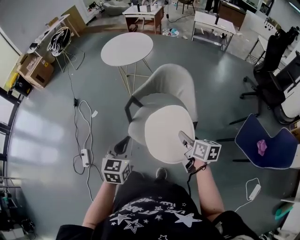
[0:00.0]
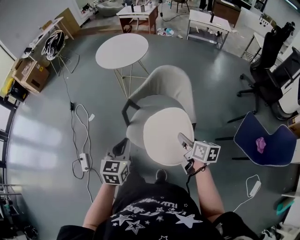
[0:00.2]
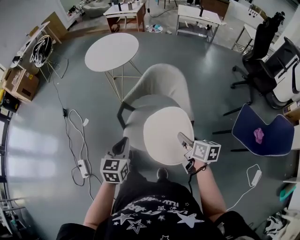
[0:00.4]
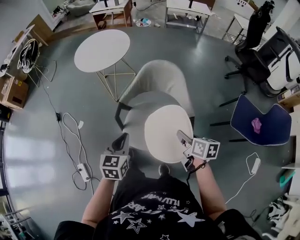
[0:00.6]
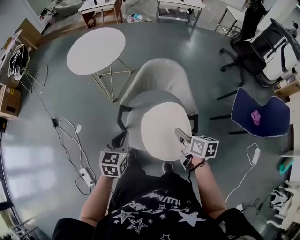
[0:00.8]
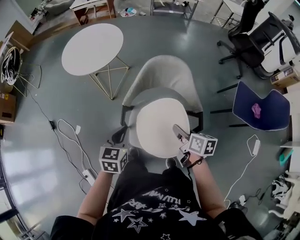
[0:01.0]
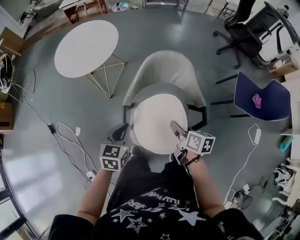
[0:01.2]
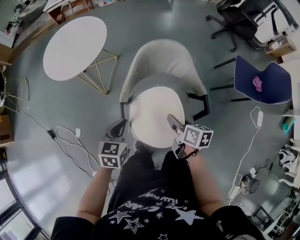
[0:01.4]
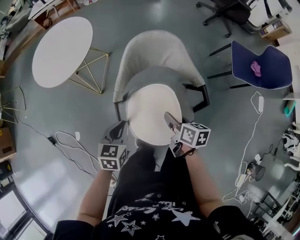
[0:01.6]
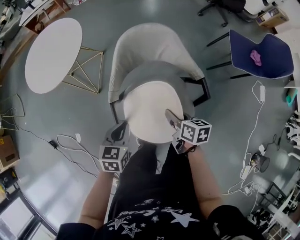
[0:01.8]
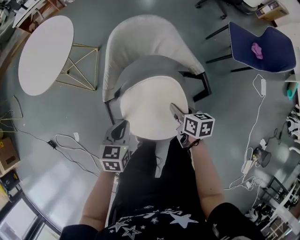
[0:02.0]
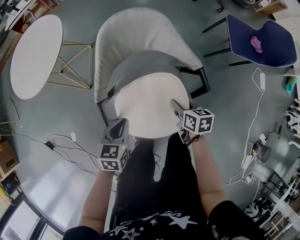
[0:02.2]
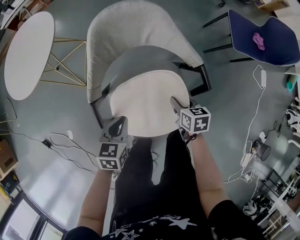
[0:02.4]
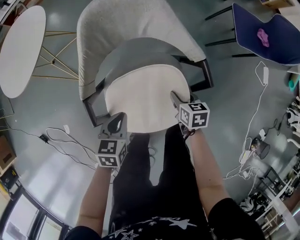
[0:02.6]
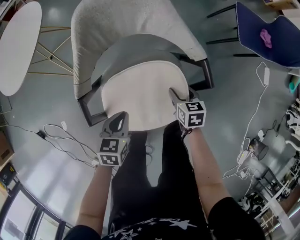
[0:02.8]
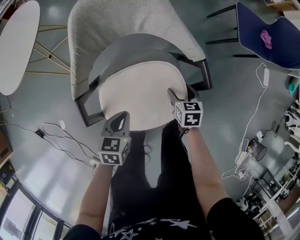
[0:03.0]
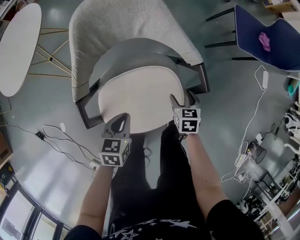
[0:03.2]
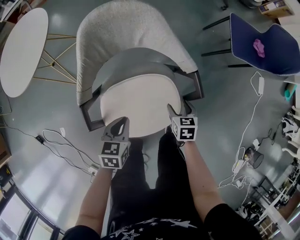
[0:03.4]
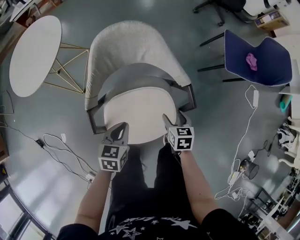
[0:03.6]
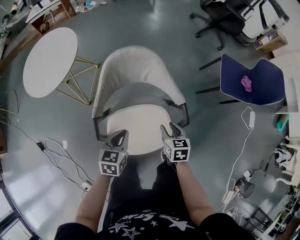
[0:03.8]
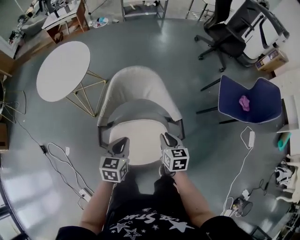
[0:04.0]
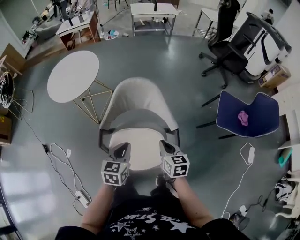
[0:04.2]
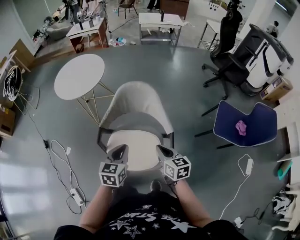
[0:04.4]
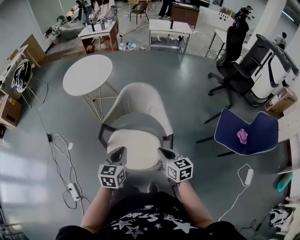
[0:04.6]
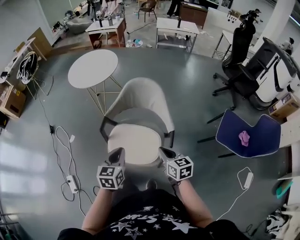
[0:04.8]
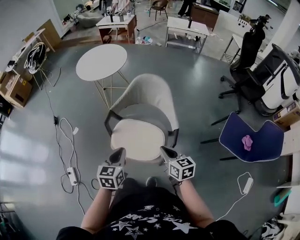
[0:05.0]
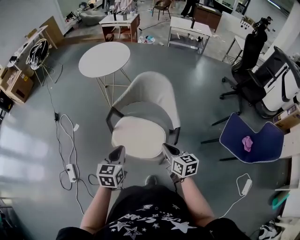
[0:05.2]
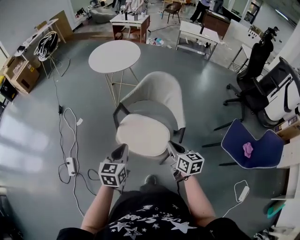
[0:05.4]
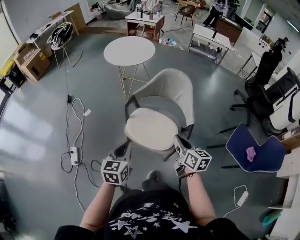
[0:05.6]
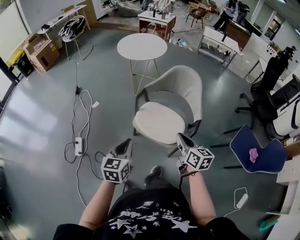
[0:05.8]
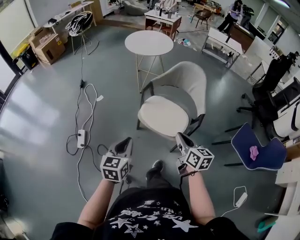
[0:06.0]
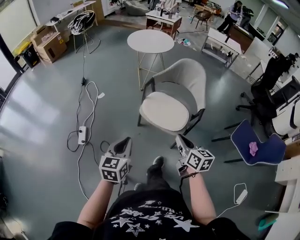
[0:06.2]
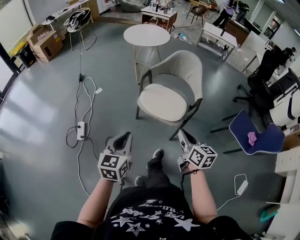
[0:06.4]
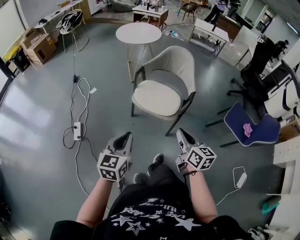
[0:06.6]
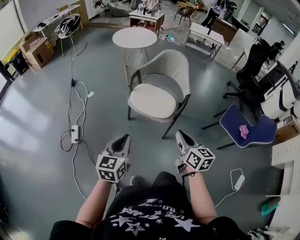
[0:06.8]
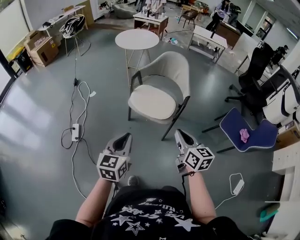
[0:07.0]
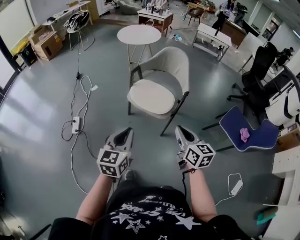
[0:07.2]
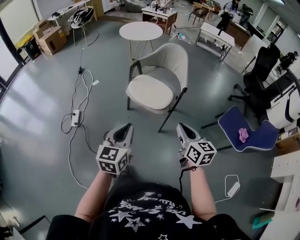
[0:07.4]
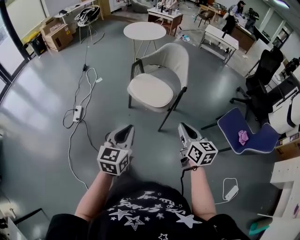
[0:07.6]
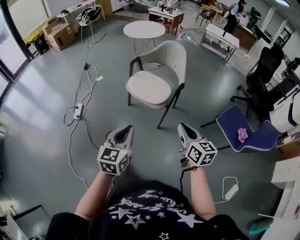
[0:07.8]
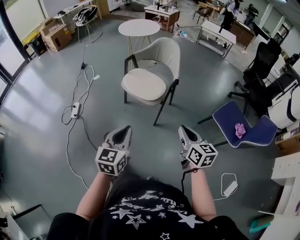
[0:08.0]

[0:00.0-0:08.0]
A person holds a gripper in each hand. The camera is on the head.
0:00.0 to 0:01.6: The right gripper ends up some 20 cm from where it was, and turns by roughly 40 degrees, while the left gripper shifts by some 30 cm, and changes its angle by approximately 40 degrees.
0:01.6 to 0:03.2: Both grippers move downward and to the right, some 25 cm. The right gripper swivels some 40 degrees, and opens.
0:03.2 to 0:04.8: Both grippers travel together upward, roughly 25 cm. The right gripper rotates some 50 degrees, and closes up. The left gripper rotates about 40 degrees.
0:04.8 to 0:06.4: Both grippers travel together backward and to the left, about 30 cm.
0:06.4 to 0:08.0: The two grippers go some 30 cm to the right and backward.

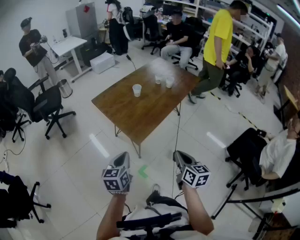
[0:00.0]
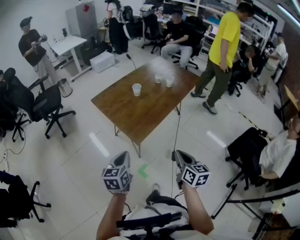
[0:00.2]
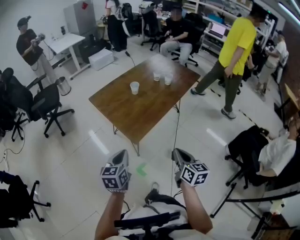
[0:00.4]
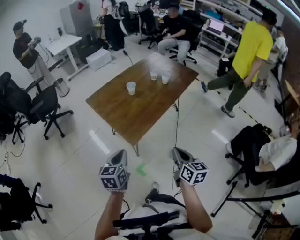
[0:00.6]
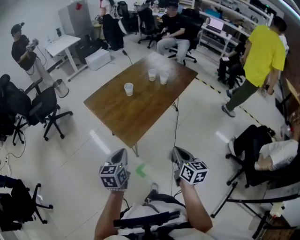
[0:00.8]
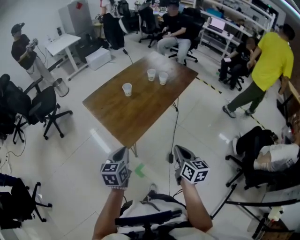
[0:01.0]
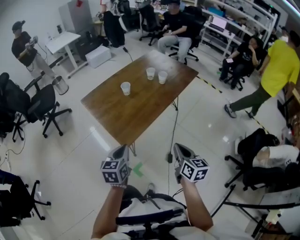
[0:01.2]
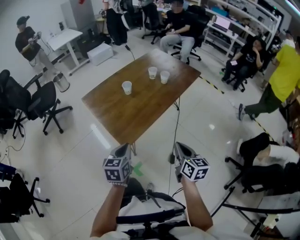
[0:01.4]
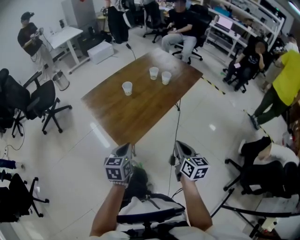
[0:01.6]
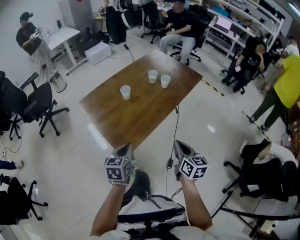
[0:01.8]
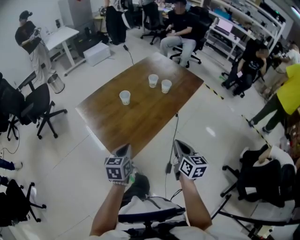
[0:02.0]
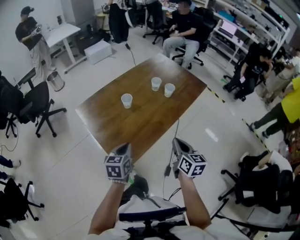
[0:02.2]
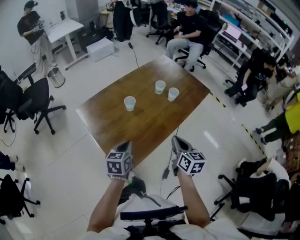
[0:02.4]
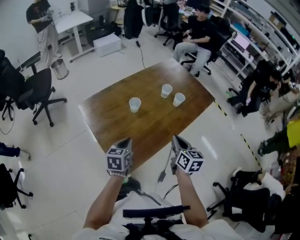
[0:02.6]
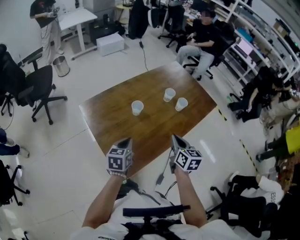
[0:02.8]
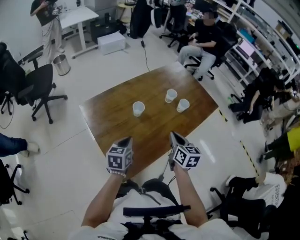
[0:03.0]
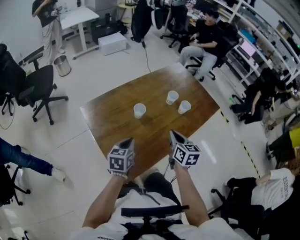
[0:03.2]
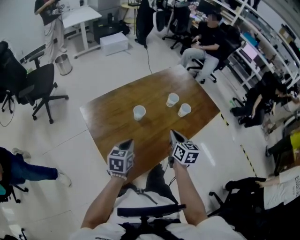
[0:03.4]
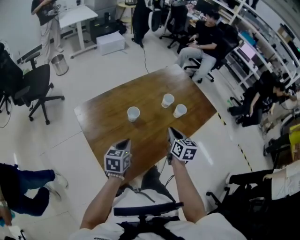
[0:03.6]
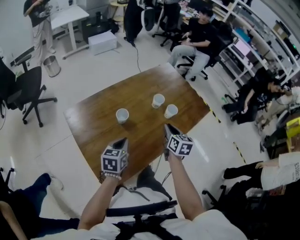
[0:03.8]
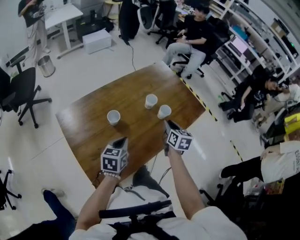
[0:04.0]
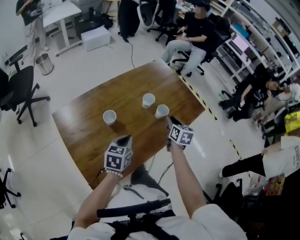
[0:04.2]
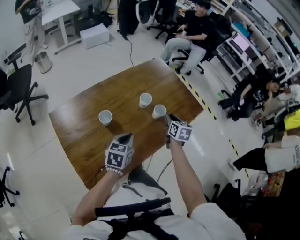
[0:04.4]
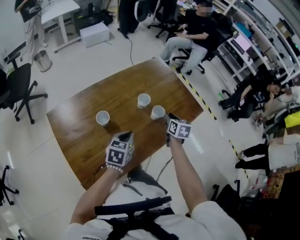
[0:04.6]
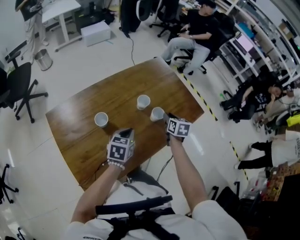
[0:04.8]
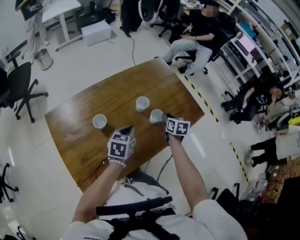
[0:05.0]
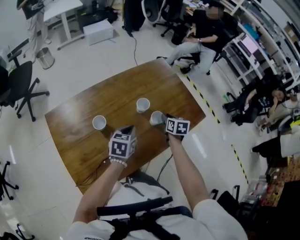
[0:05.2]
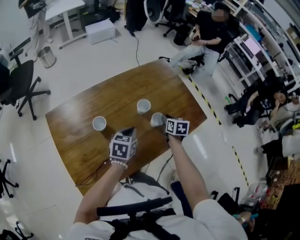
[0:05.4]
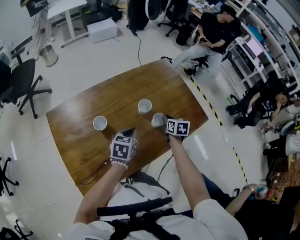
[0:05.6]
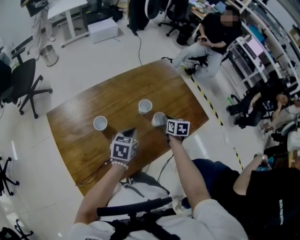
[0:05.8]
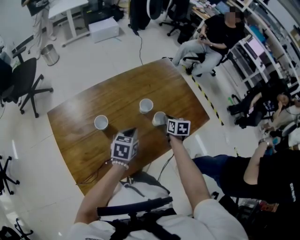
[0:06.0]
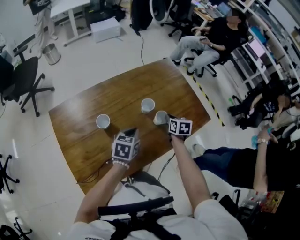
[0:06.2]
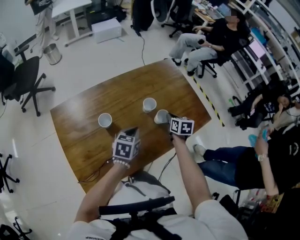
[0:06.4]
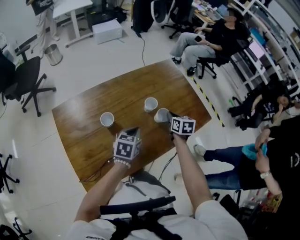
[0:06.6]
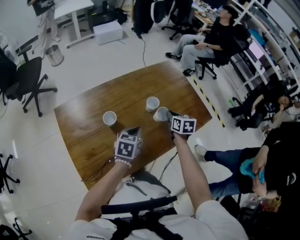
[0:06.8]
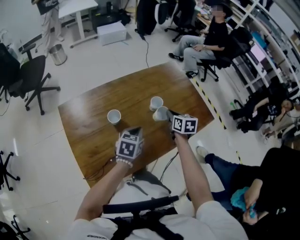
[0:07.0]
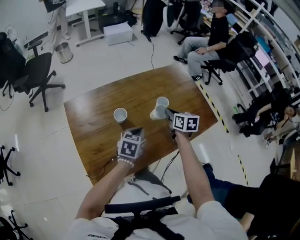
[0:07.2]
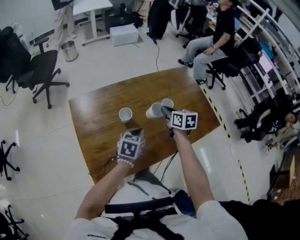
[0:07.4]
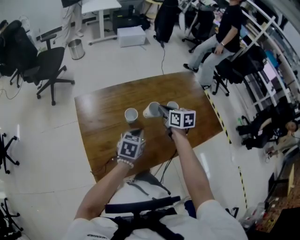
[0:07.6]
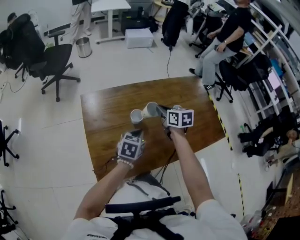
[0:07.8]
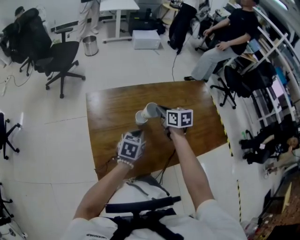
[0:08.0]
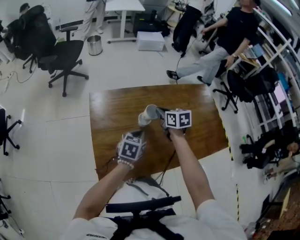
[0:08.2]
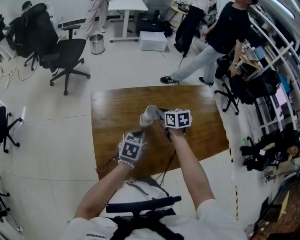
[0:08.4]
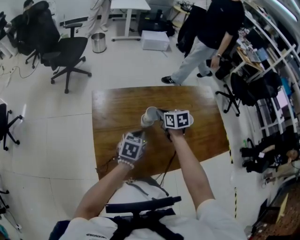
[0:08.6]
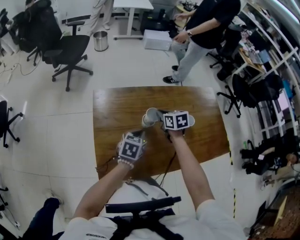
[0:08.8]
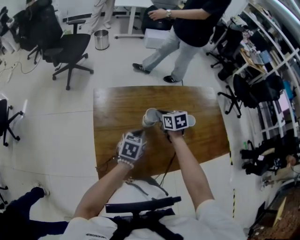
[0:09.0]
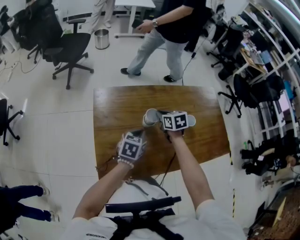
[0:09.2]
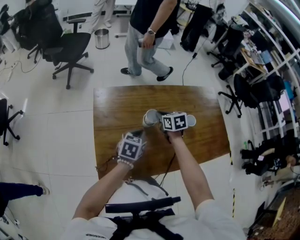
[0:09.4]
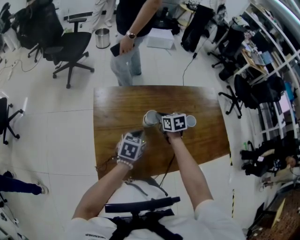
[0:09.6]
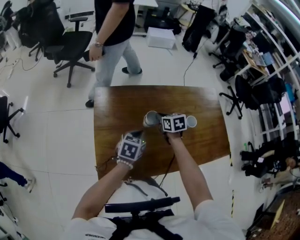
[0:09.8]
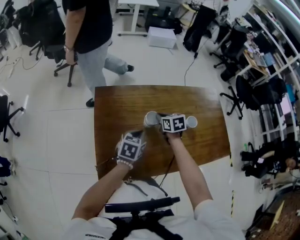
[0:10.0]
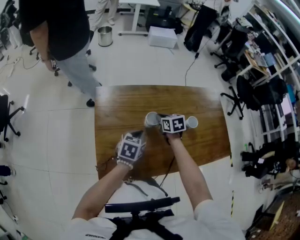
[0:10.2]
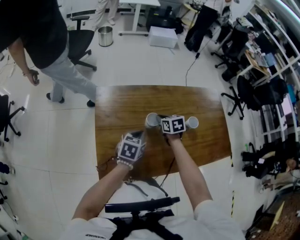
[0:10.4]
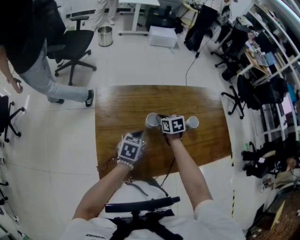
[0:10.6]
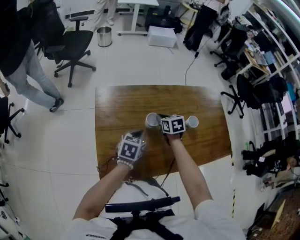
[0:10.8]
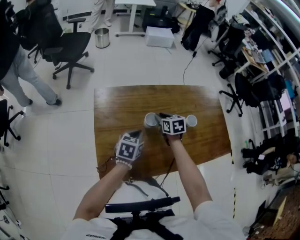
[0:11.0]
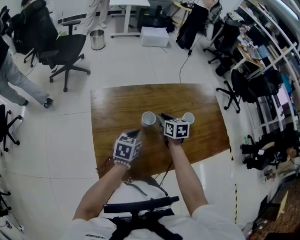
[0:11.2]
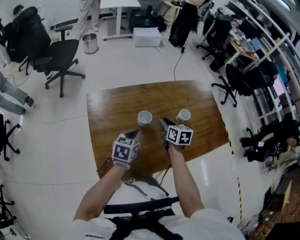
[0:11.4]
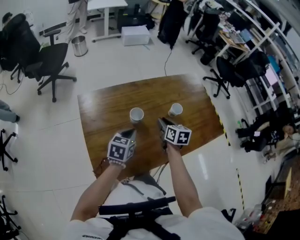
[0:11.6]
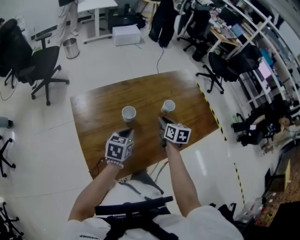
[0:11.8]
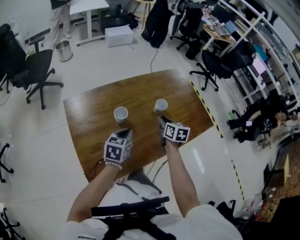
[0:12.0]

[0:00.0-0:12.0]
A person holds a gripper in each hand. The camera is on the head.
0:00.0 to 0:01.6: Both grippers move forward and to the right, roughly 15 cm.
0:01.6 to 0:03.0: Both grippers move forward, roughly 25 cm.
0:03.0 to 0:04.4: The right gripper goes approximately 25 cm forward and to the right, and opens up; the left gripper moves to the right and forward, some 20 cm.
0:04.4 to 0:06.0: The right gripper travels downward and forward by some 10 cm, and closes its fingers. The left gripper shifts about 10 cm forward.
0:06.0 to 0:07.6: The right gripper is displaced to the left and upward by approximately 25 cm, and turns by about 30 degrees, while the left gripper goes about 10 cm to the left and backward.
0:07.6 to 0:09.0: The right gripper shifts approximately 15 cm to the left and downward, and turns by some 20 degrees. The left gripper goes approximately 10 cm to the left.
0:09.0 to 0:10.4: The right gripper is displaced downward by approximately 5 cm.
0:10.4 to 0:12.0: The right gripper heads to the right, covering approximately 20 cm, changes its angle by approximately 40 degrees, and opens its fingers, while the left gripper heads to the right, covering about 5 cm.

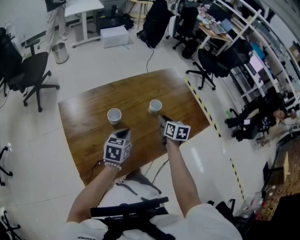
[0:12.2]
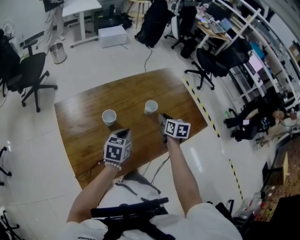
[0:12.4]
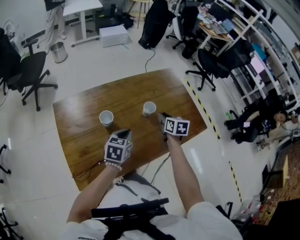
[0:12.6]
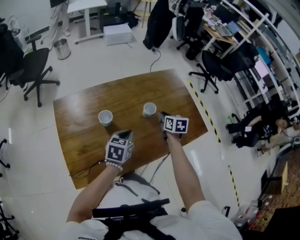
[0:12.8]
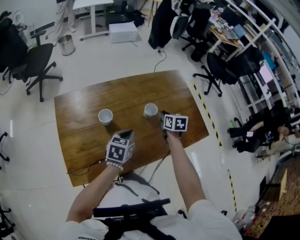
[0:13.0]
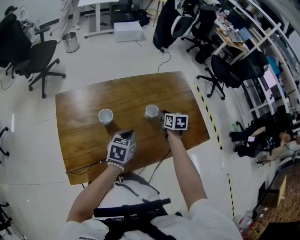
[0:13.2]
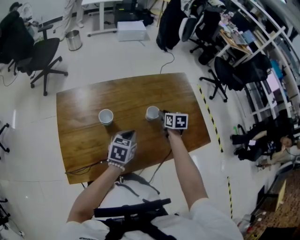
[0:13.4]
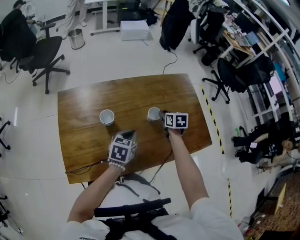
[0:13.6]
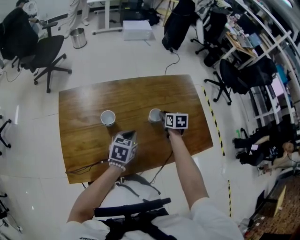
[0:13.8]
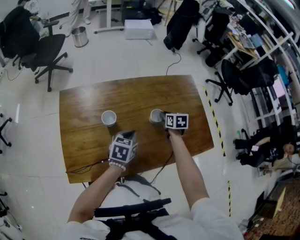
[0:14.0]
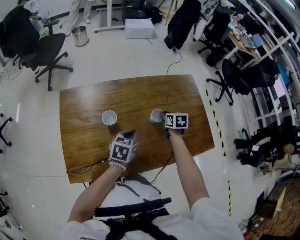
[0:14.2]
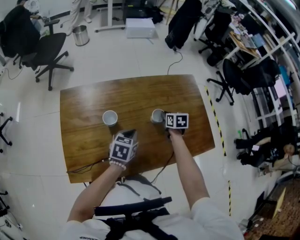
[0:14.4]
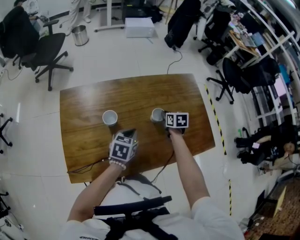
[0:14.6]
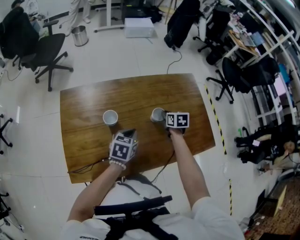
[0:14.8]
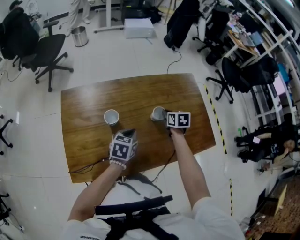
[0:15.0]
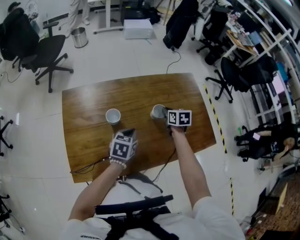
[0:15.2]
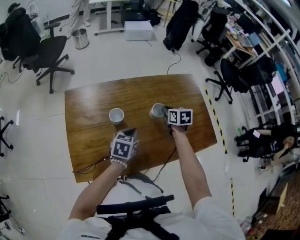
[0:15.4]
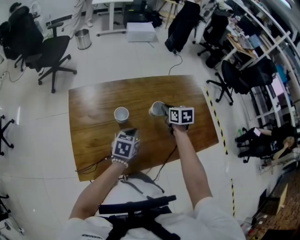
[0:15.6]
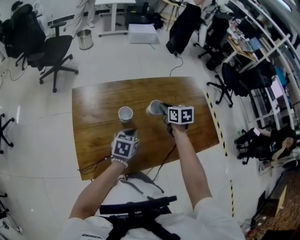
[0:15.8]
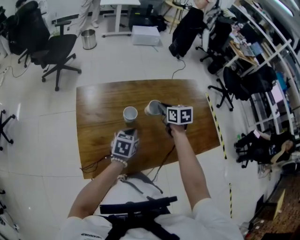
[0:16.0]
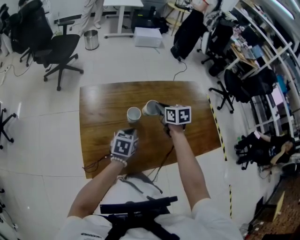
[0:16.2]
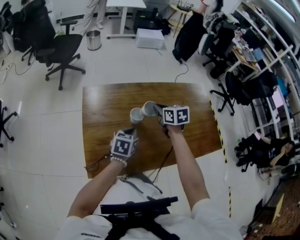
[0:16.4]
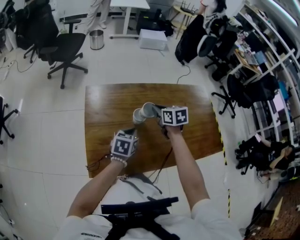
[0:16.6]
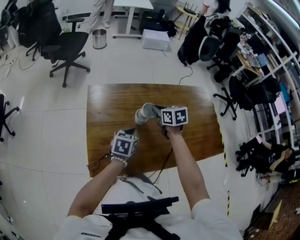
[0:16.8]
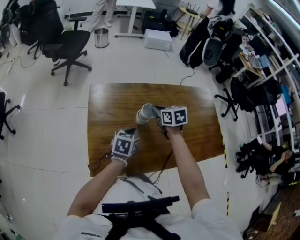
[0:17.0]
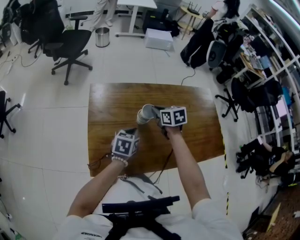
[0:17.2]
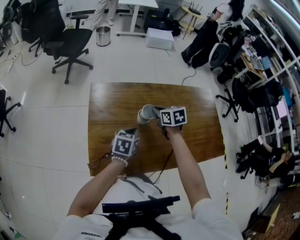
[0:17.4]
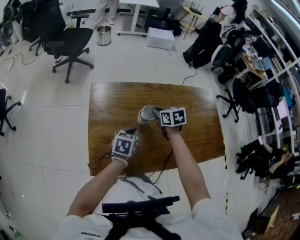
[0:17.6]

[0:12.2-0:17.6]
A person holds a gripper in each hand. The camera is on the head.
0:12.2 to 0:13.6: The left gripper goes roughly 10 cm to the right and forward, while the right gripper travels forward and downward by roughly 15 cm, and rotates roughly 20 degrees.
0:13.6 to 0:15.0: The grippers make only small movements.
0:15.0 to 0:16.2: The right gripper moves to the left and upward, some 20 cm. Meanwhile the left gripper travels to the left by roughly 10 cm.
0:16.2 to 0:17.6: The right gripper is displaced to the left by some 10 cm.
